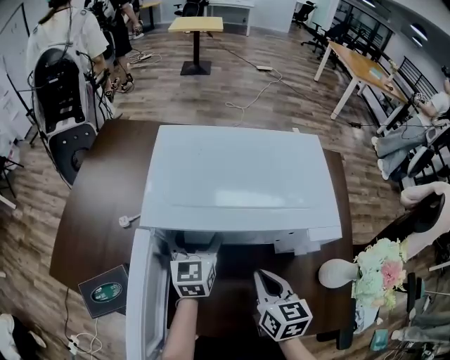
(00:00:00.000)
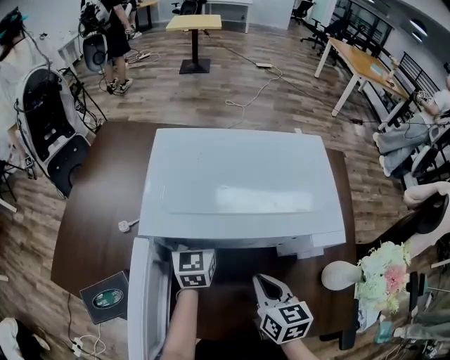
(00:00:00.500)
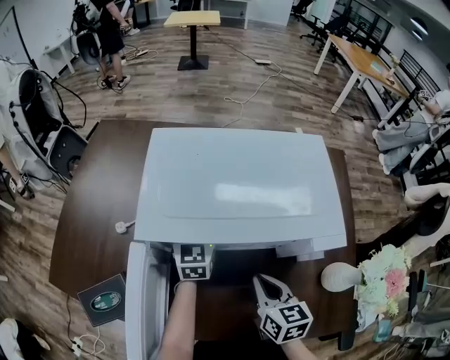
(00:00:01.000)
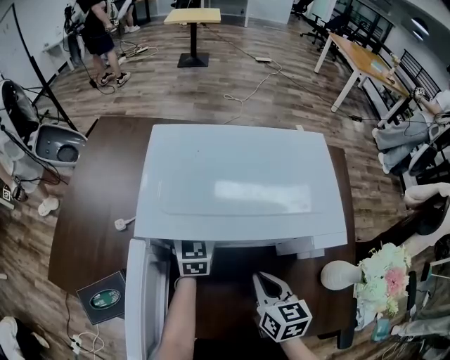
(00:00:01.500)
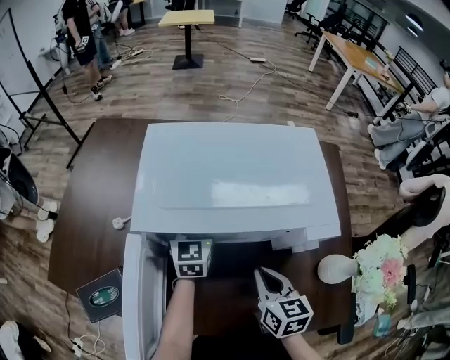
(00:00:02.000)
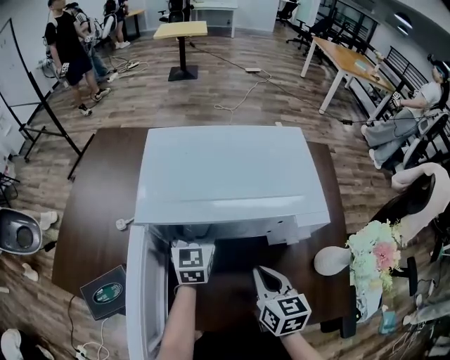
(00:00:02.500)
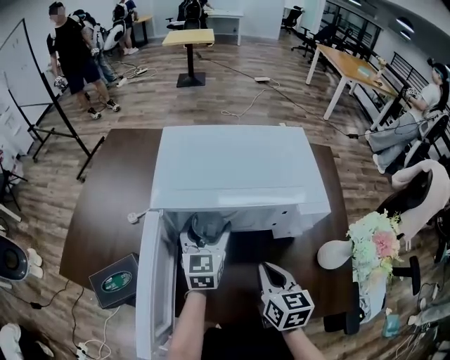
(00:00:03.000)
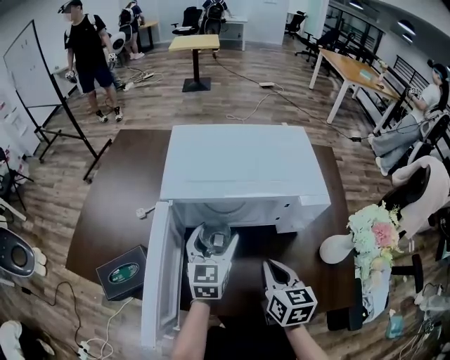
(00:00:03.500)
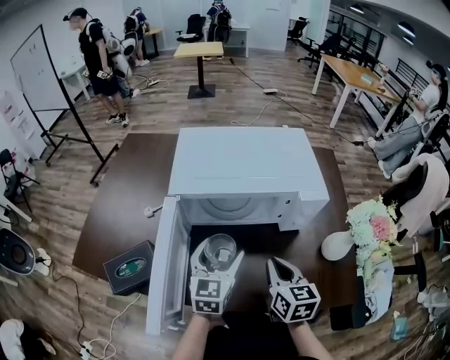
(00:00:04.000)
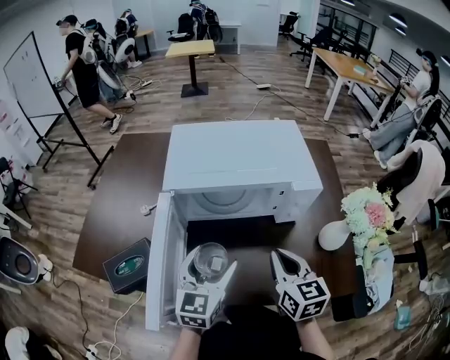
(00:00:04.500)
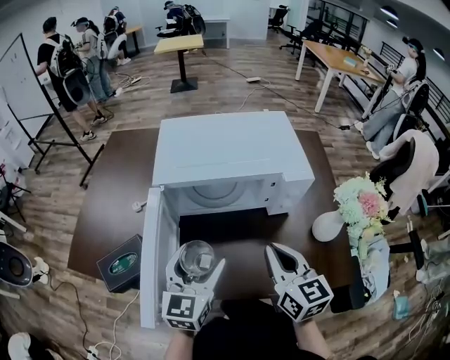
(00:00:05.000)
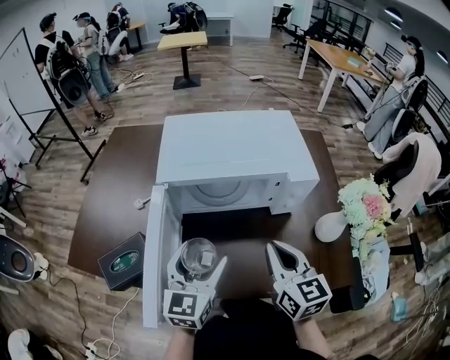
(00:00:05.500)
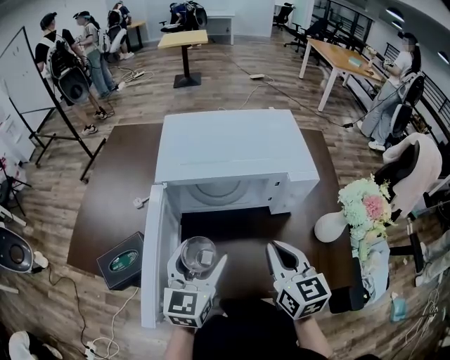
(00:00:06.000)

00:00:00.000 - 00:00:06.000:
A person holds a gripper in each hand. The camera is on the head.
00:00:00.000 - 00:00:02.000: The left gripper goes about 5 cm forward.
00:00:02.000 - 00:00:04.000: The right gripper heads backward and upward, covering some 10 cm; the left gripper shifts about 20 cm backward.
00:00:04.000 - 00:00:06.000: The right gripper shifts about 5 cm upward. The left gripper heads backward, covering about 5 cm.

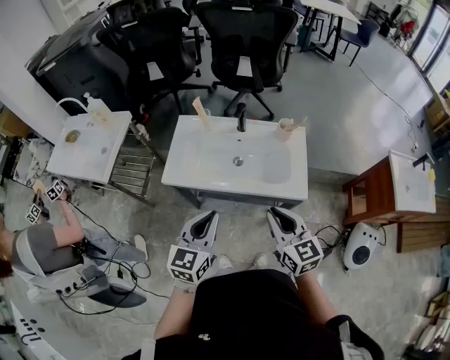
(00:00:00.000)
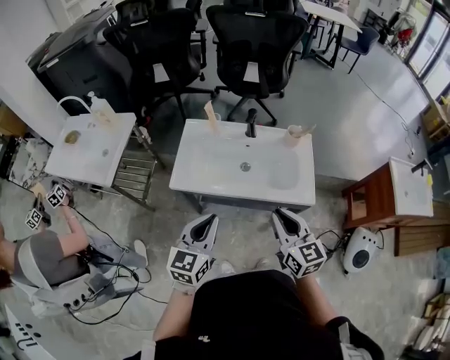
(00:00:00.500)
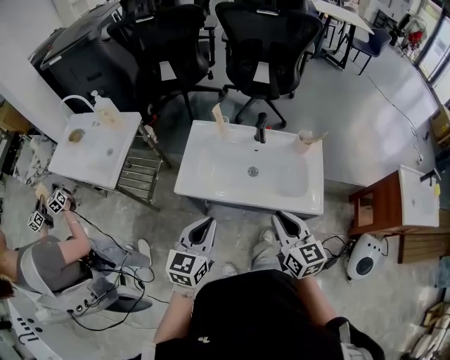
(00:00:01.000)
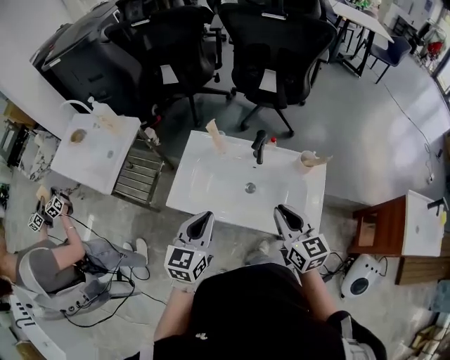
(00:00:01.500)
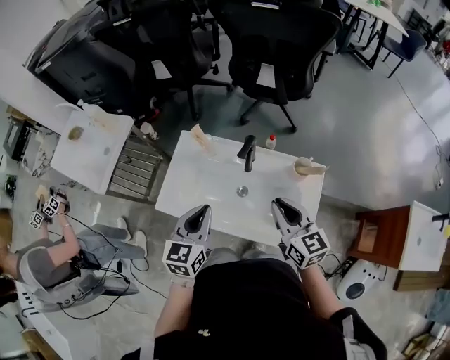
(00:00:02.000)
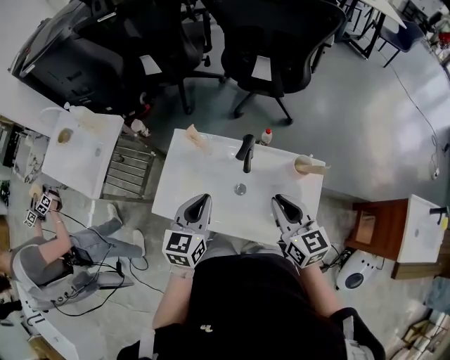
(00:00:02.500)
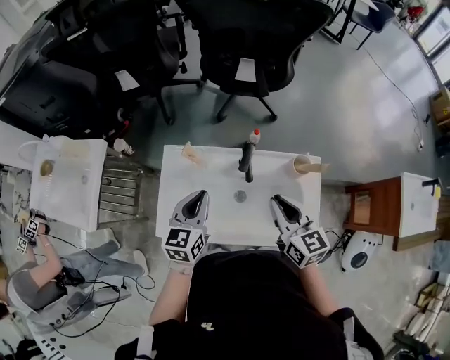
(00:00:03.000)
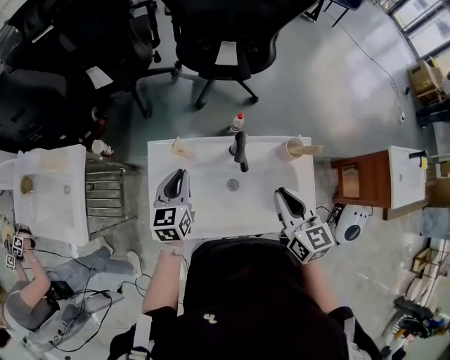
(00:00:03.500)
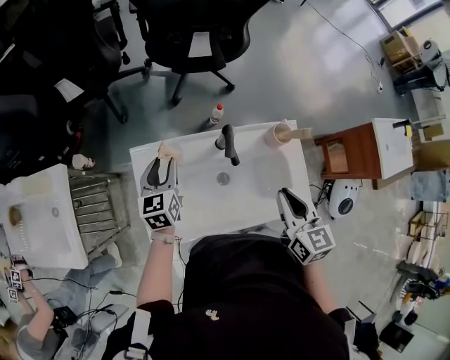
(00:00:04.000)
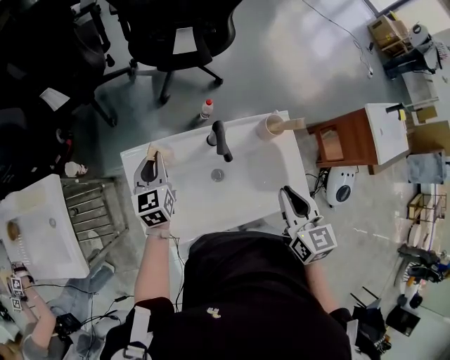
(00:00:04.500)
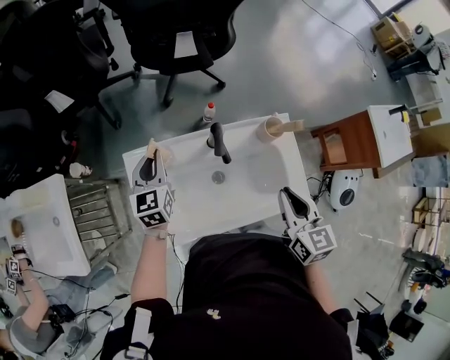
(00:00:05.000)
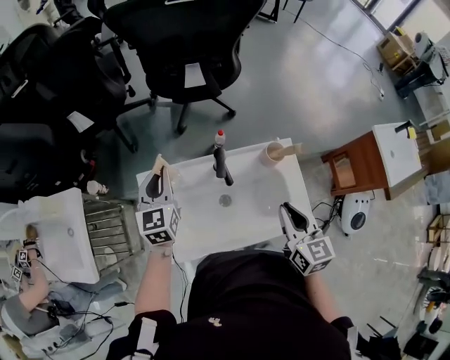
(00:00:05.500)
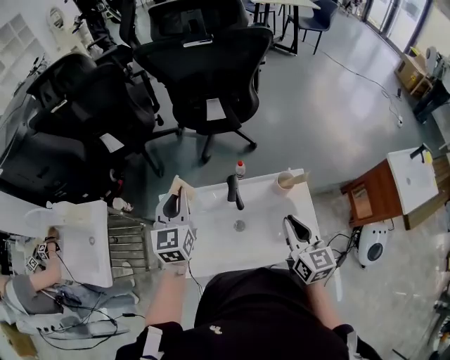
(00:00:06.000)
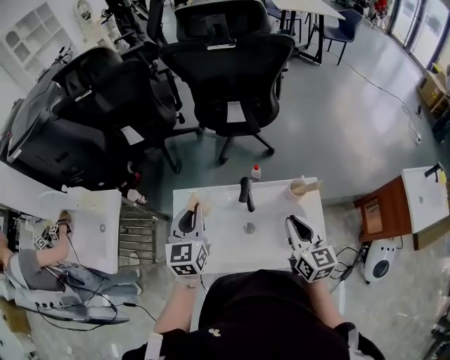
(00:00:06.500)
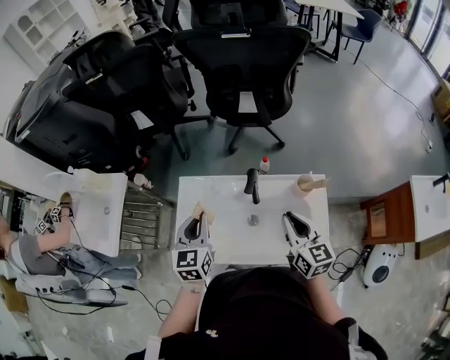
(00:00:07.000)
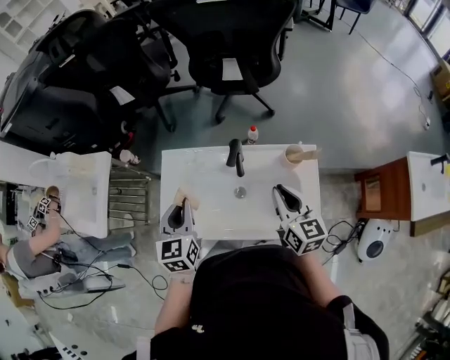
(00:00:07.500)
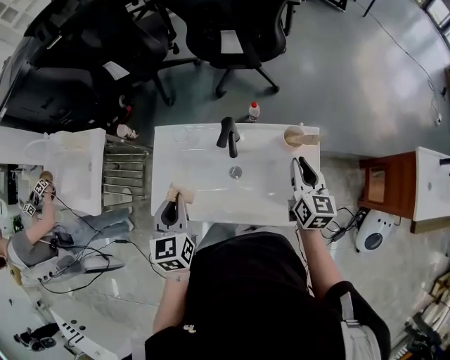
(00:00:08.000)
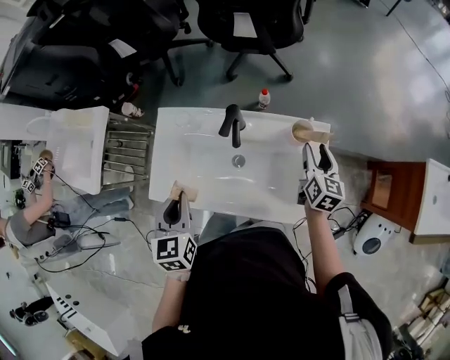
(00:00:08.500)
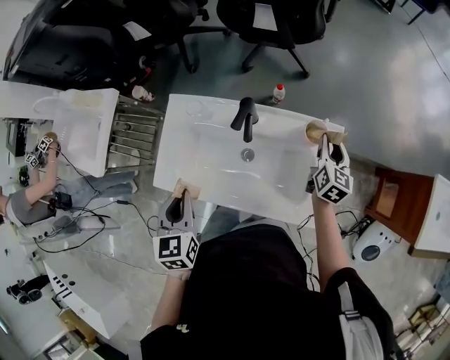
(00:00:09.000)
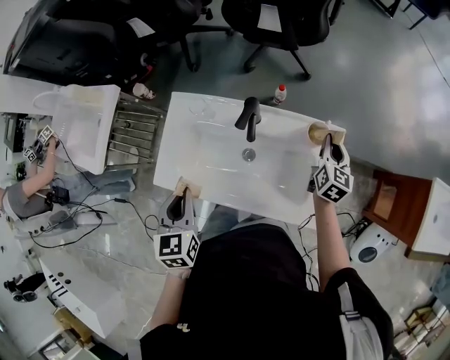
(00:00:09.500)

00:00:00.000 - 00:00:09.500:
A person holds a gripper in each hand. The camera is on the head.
00:00:00.000 - 00:00:02.000: Both grippers move forward, approximately 25 cm.
00:00:02.000 - 00:00:04.000: The right gripper swivels some 40 degrees; the left gripper heads forward, to the left and downward, covering roughly 30 cm, and opens its fingers.
00:00:04.000 - 00:00:05.500: The left gripper moves upward, about 10 cm, and closes its fingers.
00:00:05.500 - 00:00:07.500: The left gripper is displaced backward by about 15 cm; the right gripper ends up about 5 cm from where it was.
00:00:07.500 - 00:00:09.500: The left gripper moves backward, some 10 cm; the right gripper moves to the right, downward and forward, approximately 25 cm, swivels some 20 degrees, and opens, then closes once more.

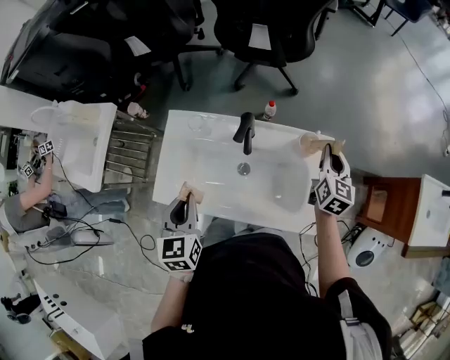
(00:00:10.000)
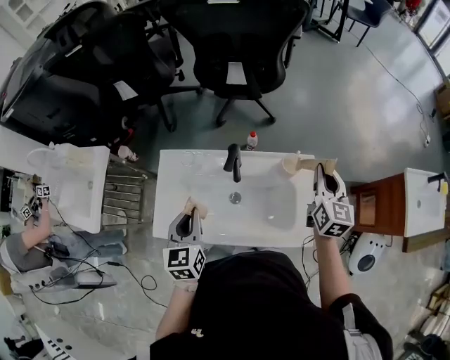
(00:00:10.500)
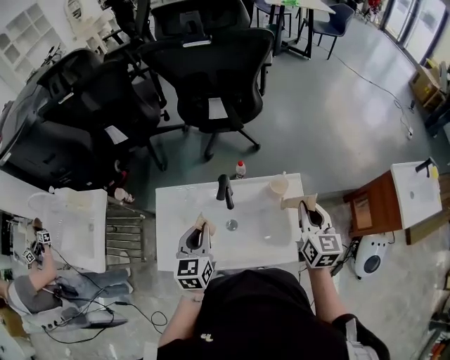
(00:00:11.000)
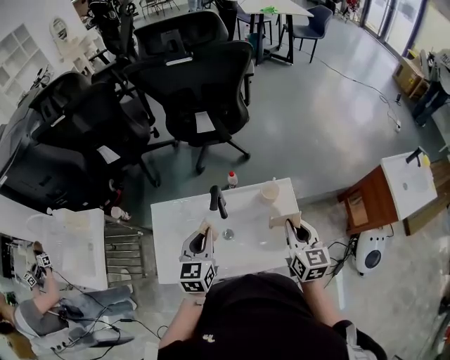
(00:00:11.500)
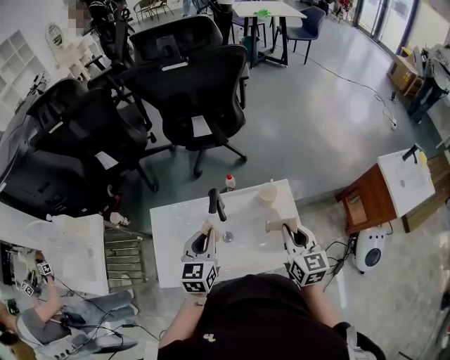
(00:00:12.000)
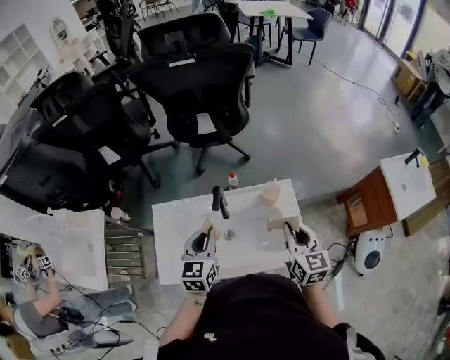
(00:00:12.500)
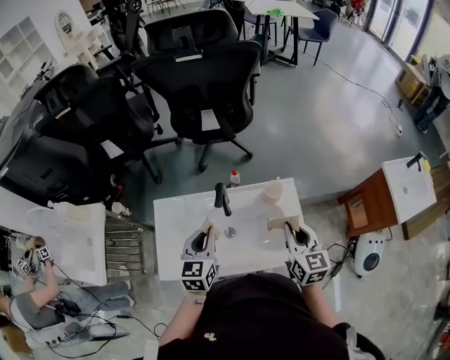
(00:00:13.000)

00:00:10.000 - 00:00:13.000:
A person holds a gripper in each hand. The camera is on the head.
00:00:10.000 - 00:00:11.500: The left gripper is displaced forward and to the right by approximately 10 cm, and turns by approximately 30 degrees. Meanwhile the right gripper heads backward and upward, covering about 15 cm.
00:00:11.500 - 00:00:13.000: The grippers make only small movements.

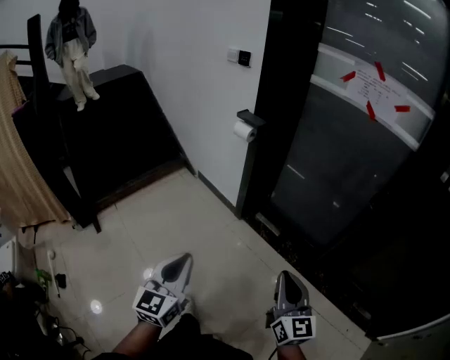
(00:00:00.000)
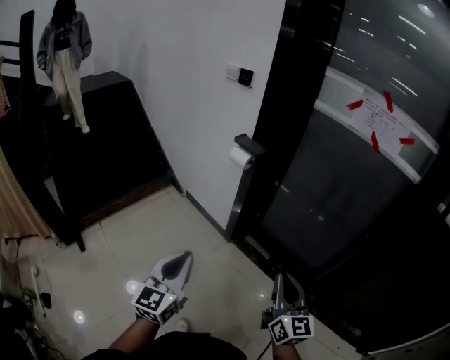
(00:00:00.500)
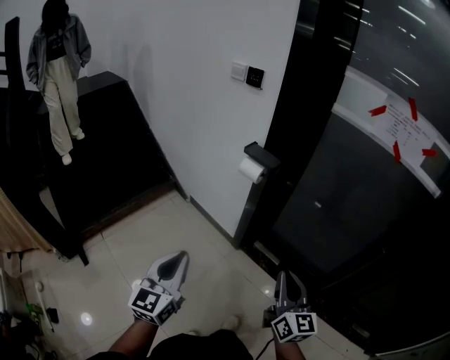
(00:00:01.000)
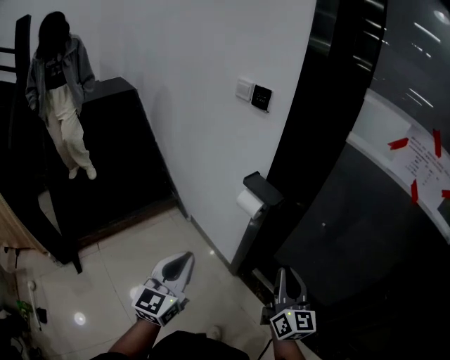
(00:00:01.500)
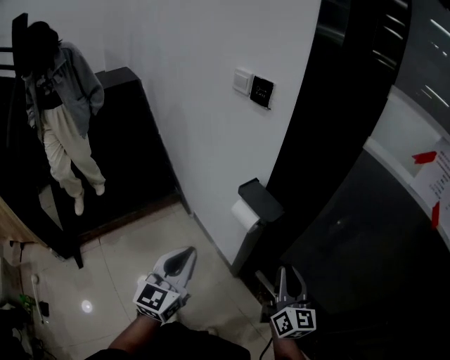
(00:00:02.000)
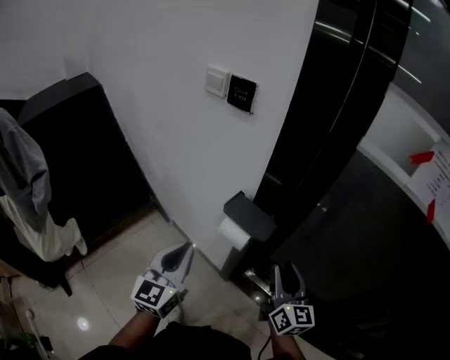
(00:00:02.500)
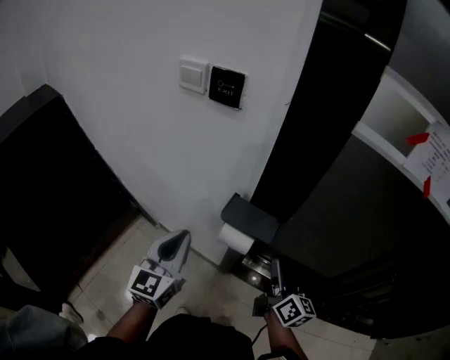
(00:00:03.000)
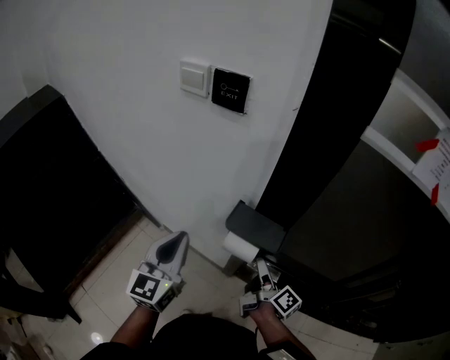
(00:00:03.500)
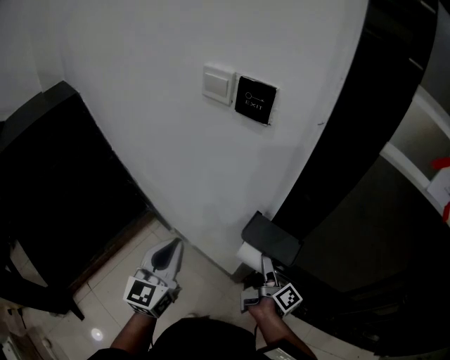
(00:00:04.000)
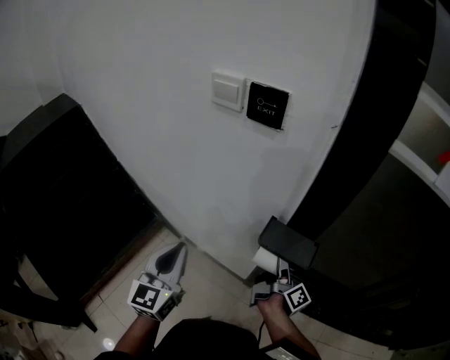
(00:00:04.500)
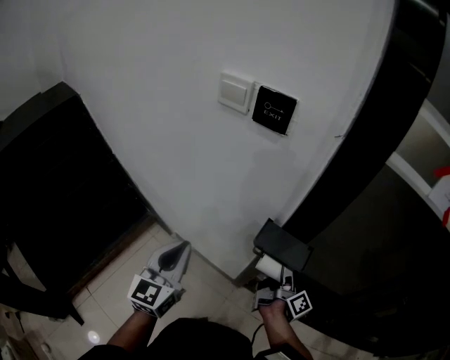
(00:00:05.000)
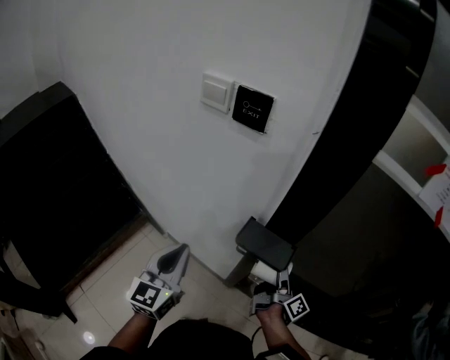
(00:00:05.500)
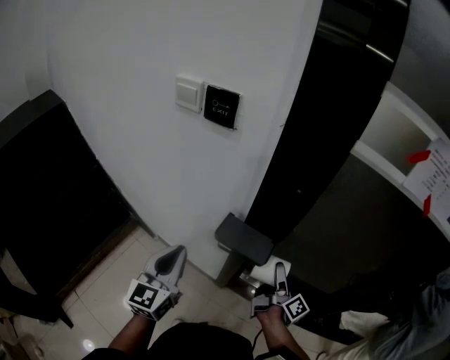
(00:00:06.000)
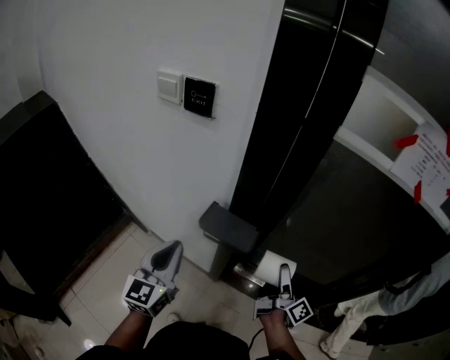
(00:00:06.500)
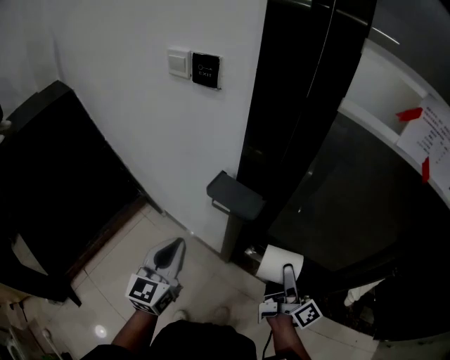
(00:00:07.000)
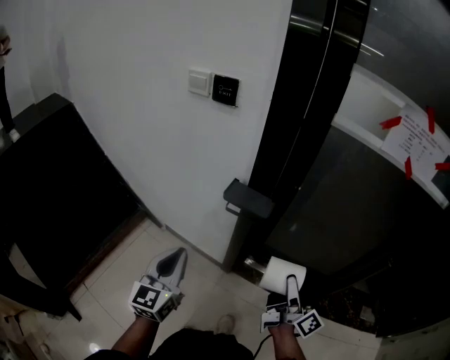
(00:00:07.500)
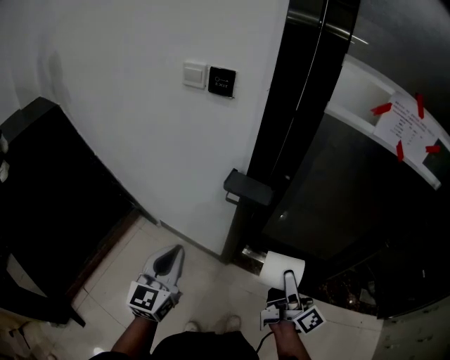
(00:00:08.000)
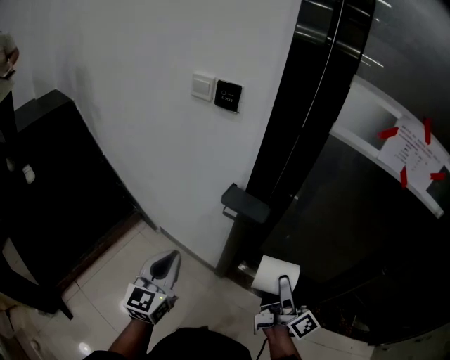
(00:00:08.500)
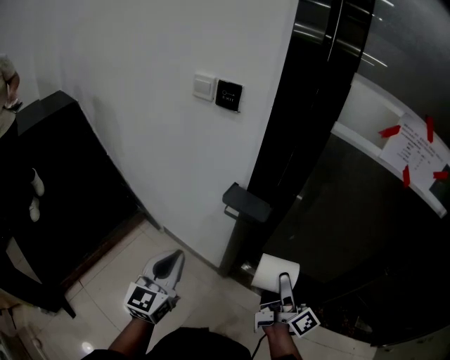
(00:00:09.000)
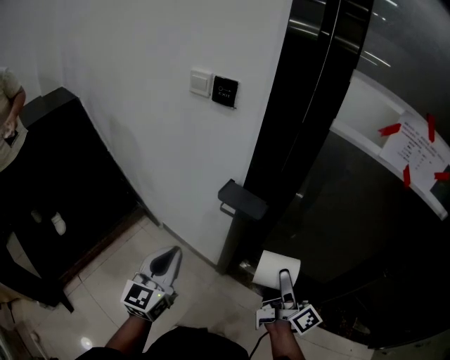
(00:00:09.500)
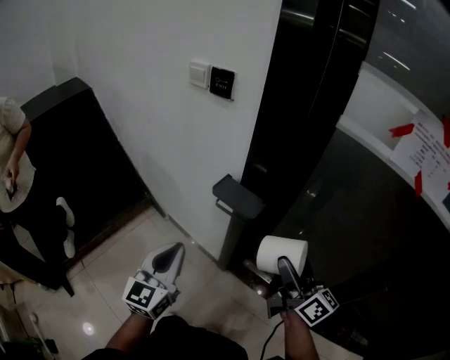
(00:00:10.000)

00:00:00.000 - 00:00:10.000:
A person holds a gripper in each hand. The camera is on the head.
00:00:00.000 - 00:00:02.000: The two grippers travel together, forward, some 50 cm.
00:00:02.000 - 00:00:04.000: The left gripper moves forward and to the left, roughly 25 cm. The right gripper is displaced forward, downward and to the left by about 25 cm, rolls clockwise, seen from behind, by approximately 70 degrees, and opens.
00:00:04.000 - 00:00:06.000: The right gripper goes approximately 15 cm to the right. Meanwhile the left gripper shifts roughly 5 cm to the right.
00:00:06.000 - 00:00:08.000: The left gripper travels backward by approximately 15 cm; the right gripper travels backward and upward by about 25 cm, and rotates about 20 degrees.
00:00:08.000 - 00:00:10.000: The right gripper shifts some 15 cm forward, upward and to the right, and changes its angle by roughly 30 degrees. Meanwhile the left gripper heads to the right, covering about 10 cm.
